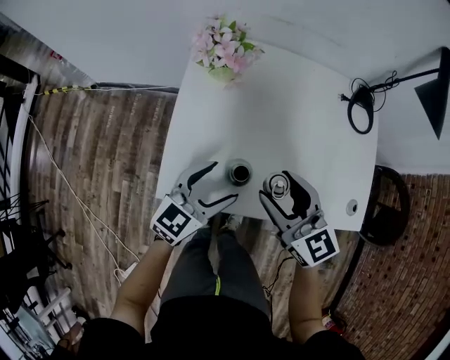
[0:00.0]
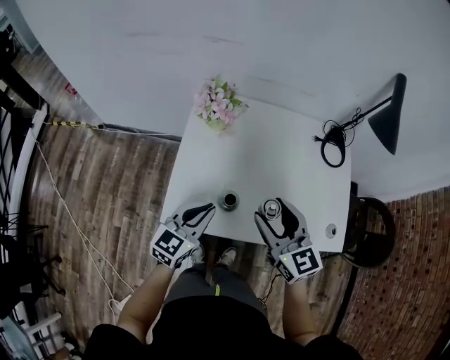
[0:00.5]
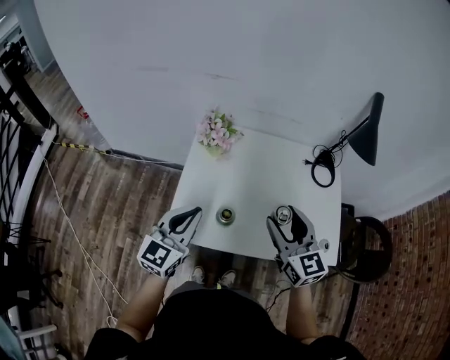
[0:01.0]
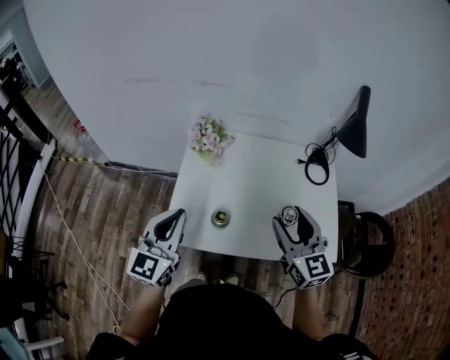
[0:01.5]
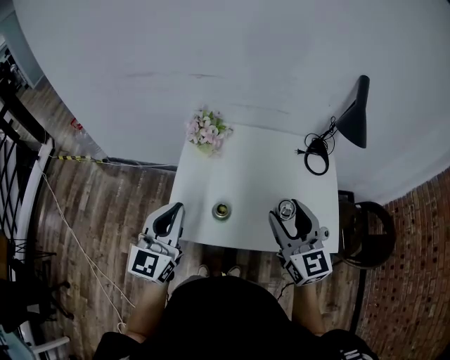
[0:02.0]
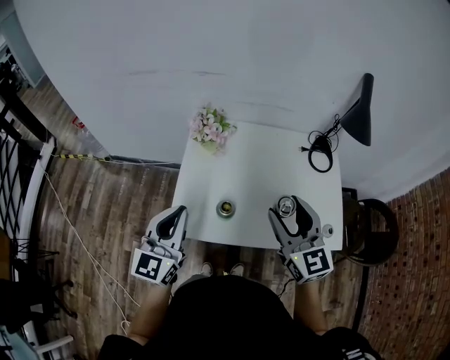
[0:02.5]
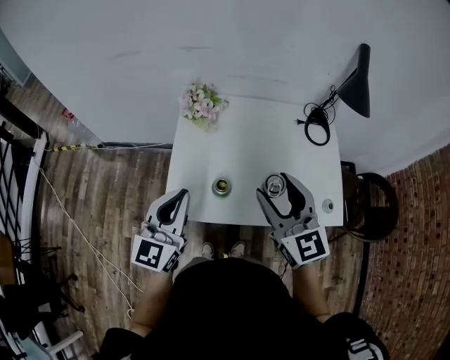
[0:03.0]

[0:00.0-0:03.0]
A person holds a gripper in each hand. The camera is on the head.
0:00.0 to 0:01.5: The left gripper goes roughly 20 cm upward, rotates approximately 30 degrees, and closes, while the right gripper is displaced upward and to the right by approximately 20 cm.
0:01.5 to 0:03.0: The right gripper heads to the left, covering roughly 5 cm.

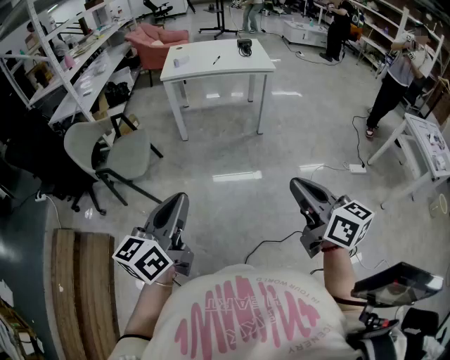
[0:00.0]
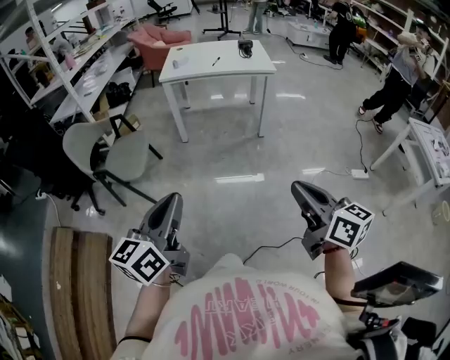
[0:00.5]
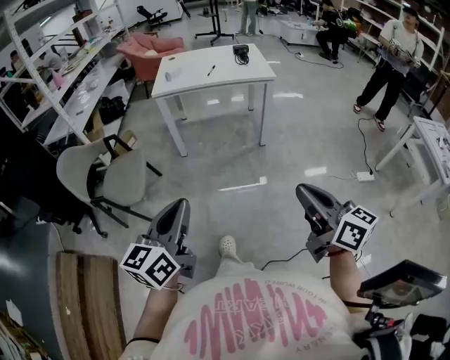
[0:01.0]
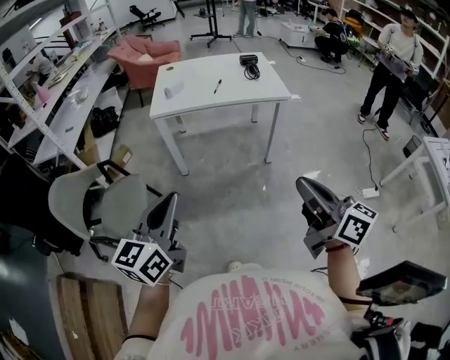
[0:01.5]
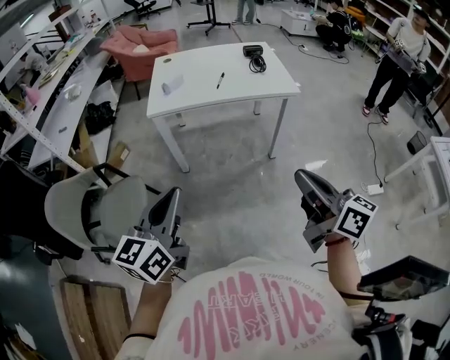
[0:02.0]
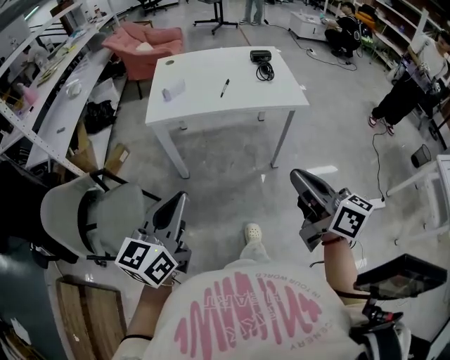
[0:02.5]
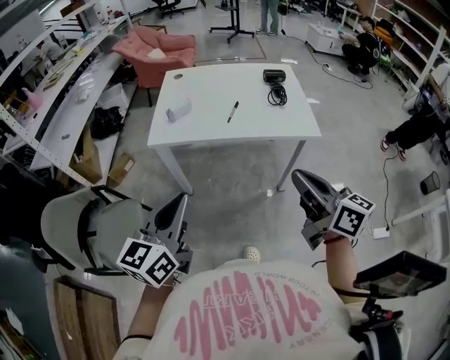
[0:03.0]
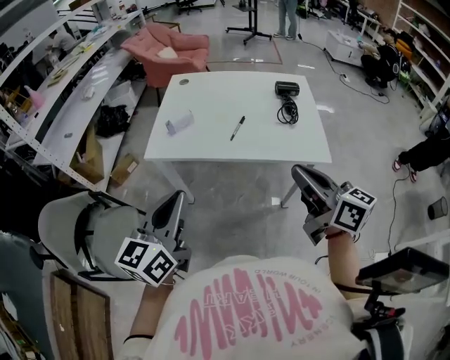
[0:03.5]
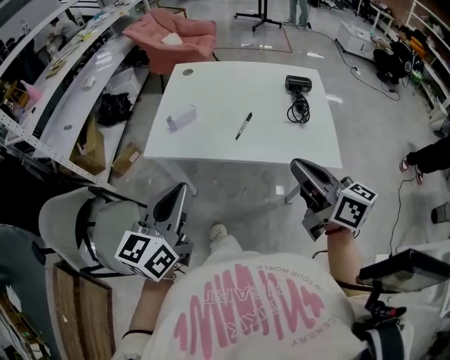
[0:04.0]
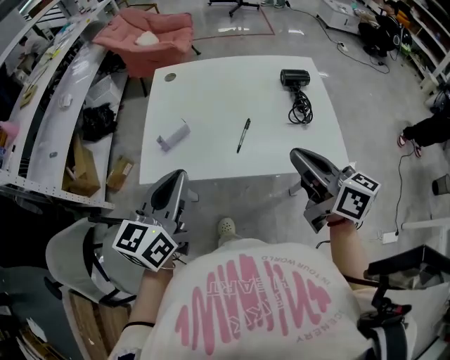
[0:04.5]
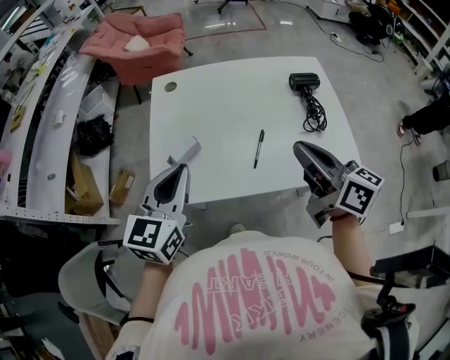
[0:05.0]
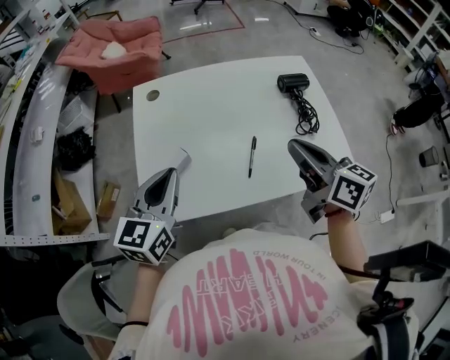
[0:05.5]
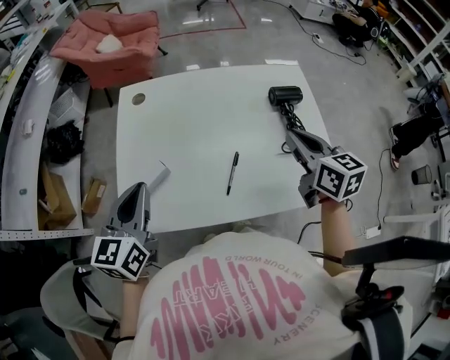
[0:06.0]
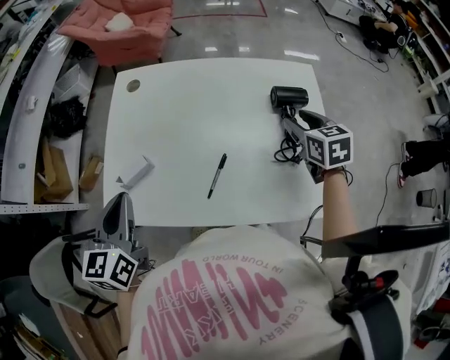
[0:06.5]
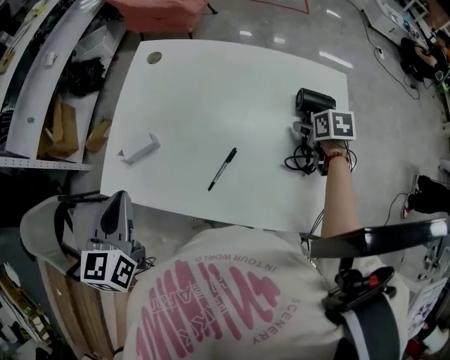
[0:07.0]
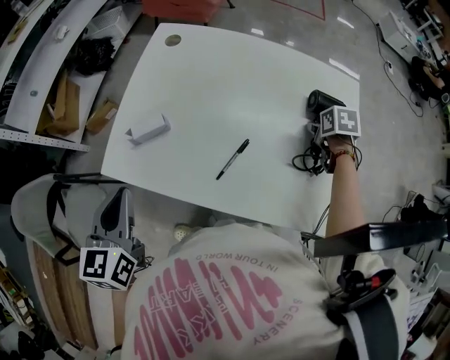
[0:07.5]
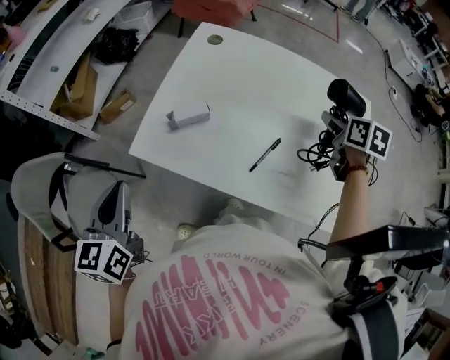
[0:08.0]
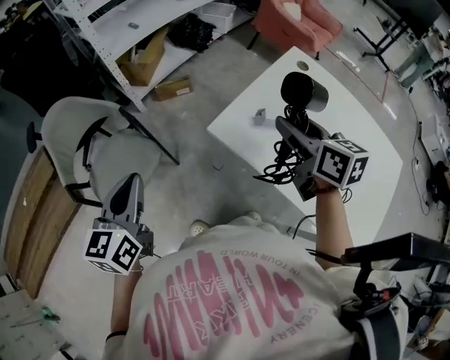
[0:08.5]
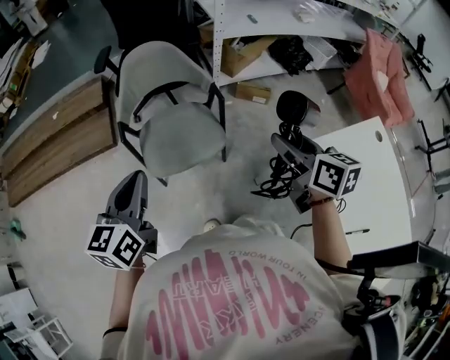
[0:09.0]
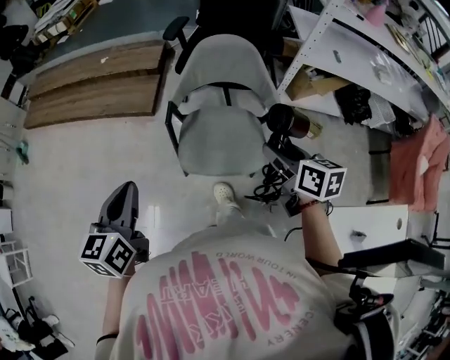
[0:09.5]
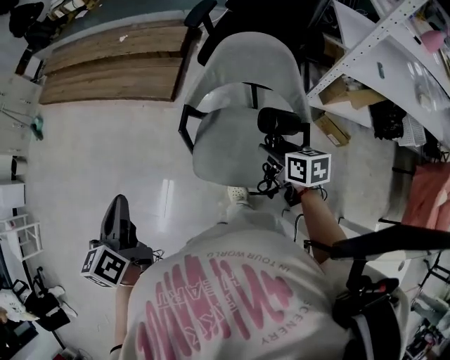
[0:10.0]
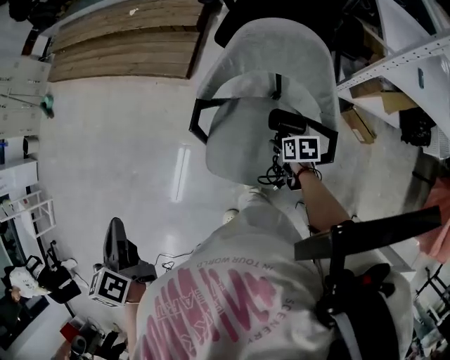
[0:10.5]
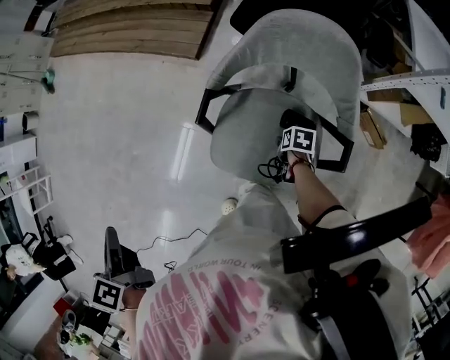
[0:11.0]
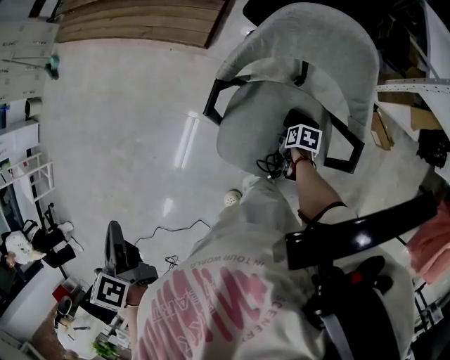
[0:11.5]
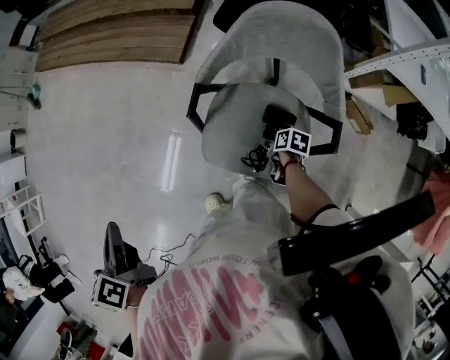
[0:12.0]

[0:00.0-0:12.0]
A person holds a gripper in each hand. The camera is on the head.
0:00.0 to 0:02.0: The grippers both shift forward by approximately 40 cm.
0:02.0 to 0:04.0: Both grippers travel together forward, roughly 35 cm.
0:04.0 to 0:06.0: The two grippers go approximately 25 cm forward. The right gripper changes its angle by about 30 degrees.
0:06.0 to 0:08.0: The left gripper travels backward and to the left by approximately 15 cm, and swivels some 40 degrees. The right gripper is displaced forward and to the right by about 15 cm, reaches approximately 20 cm downward, then returns, swivels about 20 degrees, and opens.
0:08.0 to 0:10.0: Both grippers are carried some 70 cm. The left gripper swivels approximately 100 degrees; the right gripper changes its angle by some 100 degrees.
0:10.0 to 0:12.0: The right gripper moves downward, some 25 cm, and rotates about 40 degrees; the left gripper moves some 10 cm, and changes its angle by roughly 20 degrees.

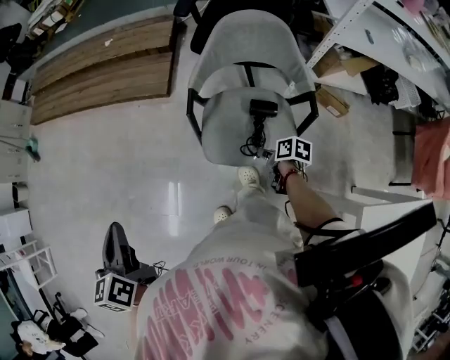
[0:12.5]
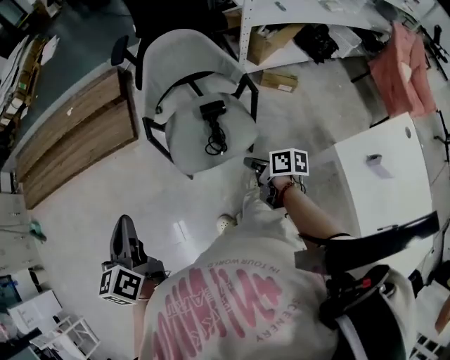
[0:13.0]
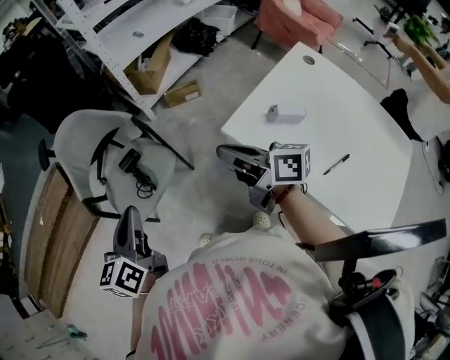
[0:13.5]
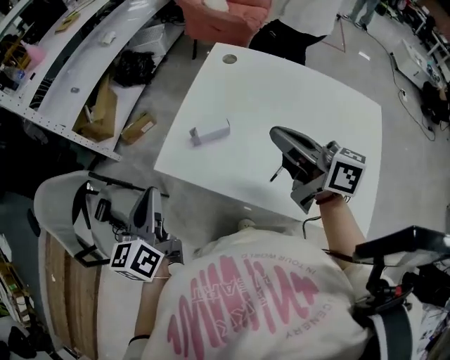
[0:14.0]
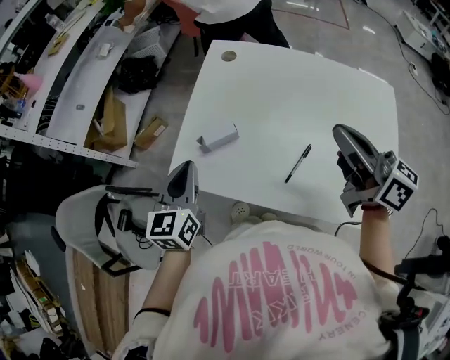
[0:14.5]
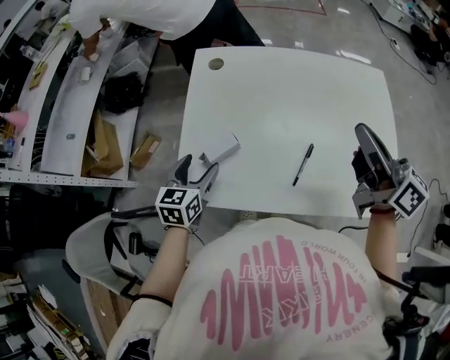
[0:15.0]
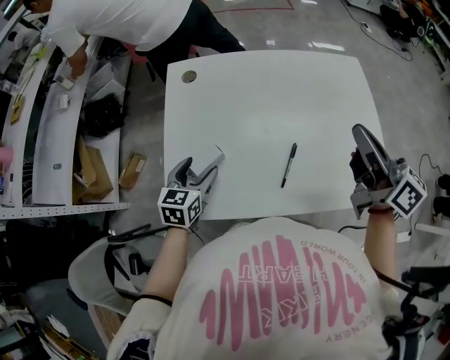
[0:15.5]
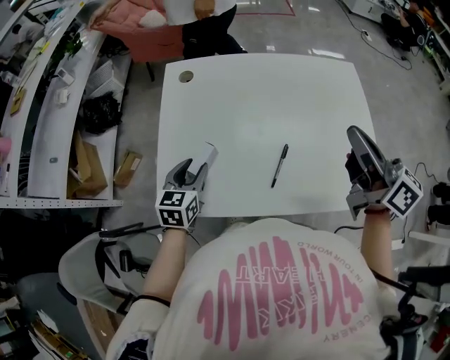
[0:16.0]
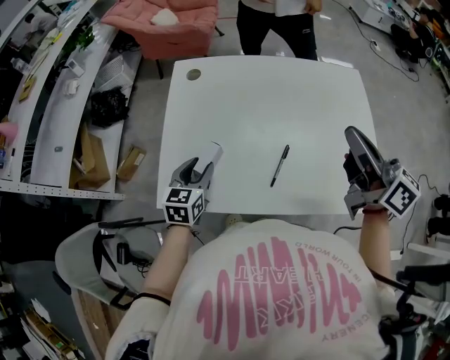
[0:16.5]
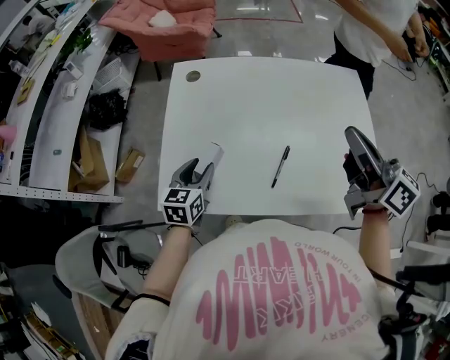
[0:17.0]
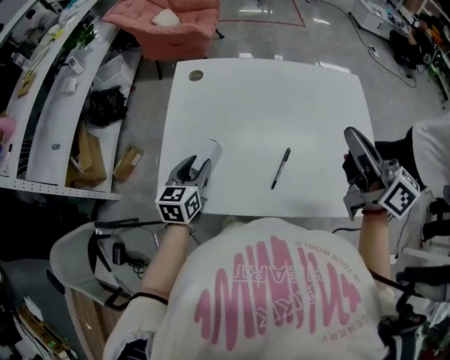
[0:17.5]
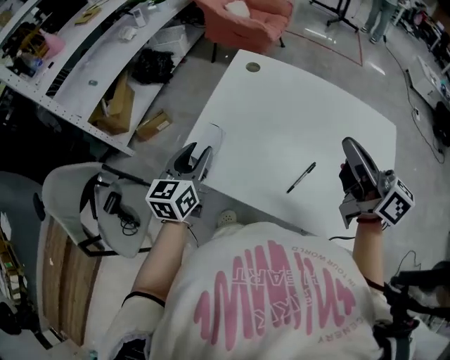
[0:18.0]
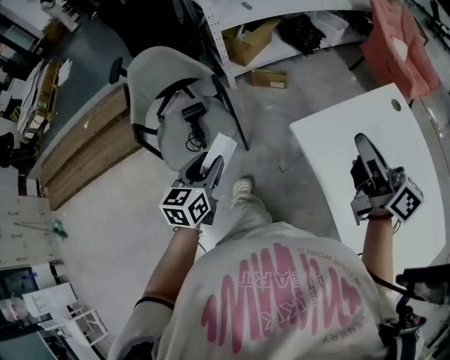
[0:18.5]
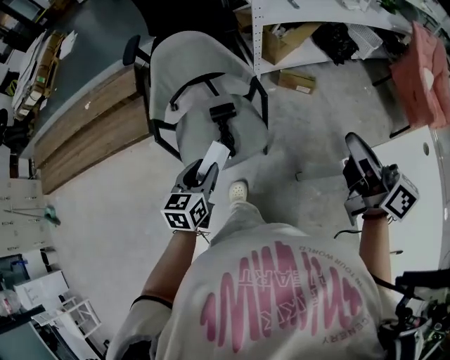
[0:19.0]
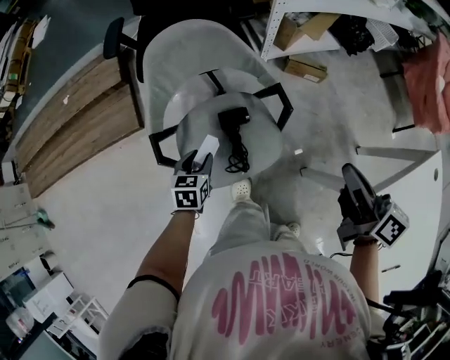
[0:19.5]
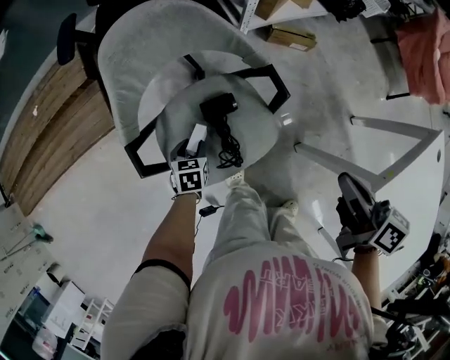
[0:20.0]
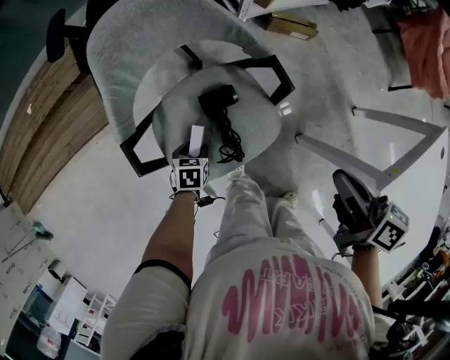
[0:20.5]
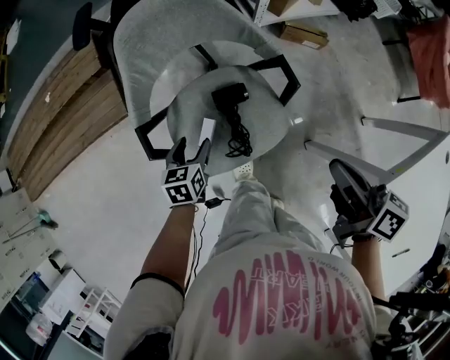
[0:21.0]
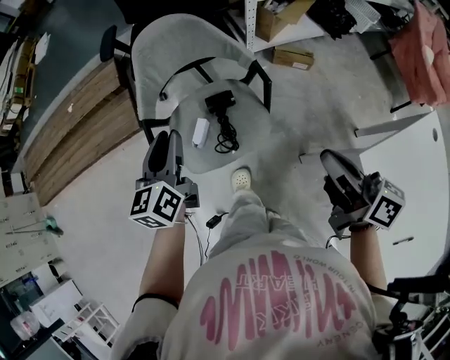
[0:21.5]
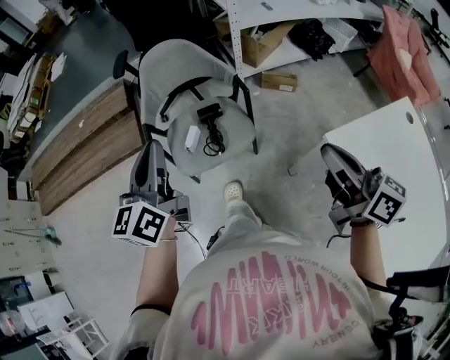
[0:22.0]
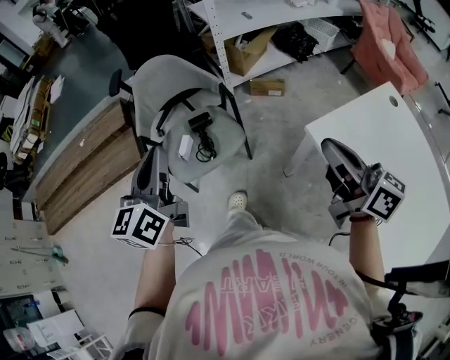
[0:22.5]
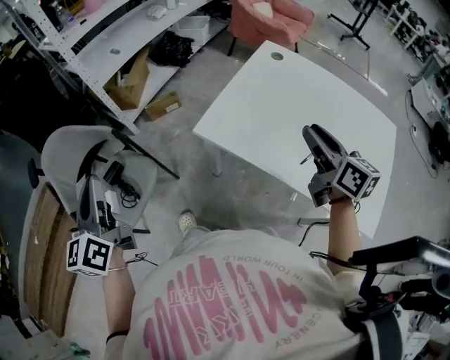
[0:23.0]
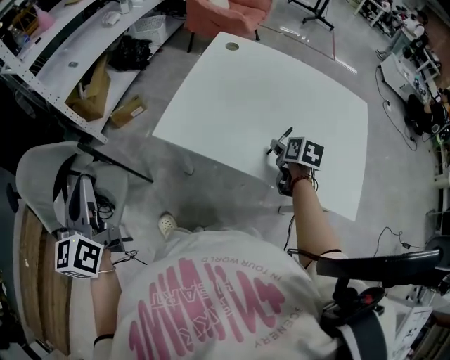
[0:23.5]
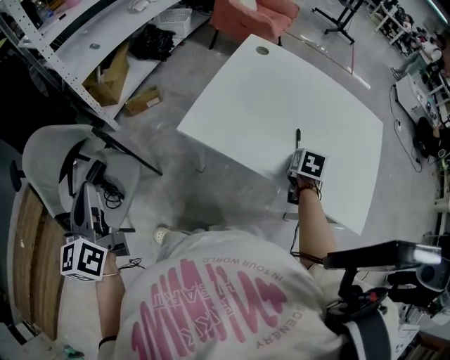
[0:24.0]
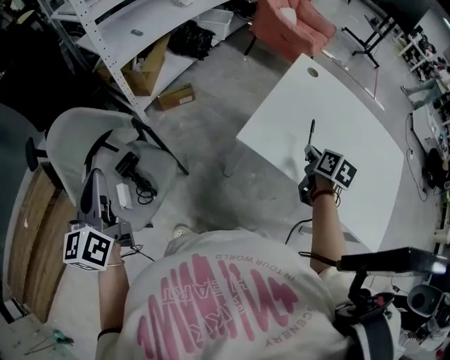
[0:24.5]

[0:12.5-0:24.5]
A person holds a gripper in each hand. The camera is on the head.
0:12.5 to 0:14.5: The right gripper shifts by about 80 cm, tips its fingers upward by roughly 60 degrees, and closes. The left gripper changes place by approximately 70 cm, and swivels some 110 degrees.
0:14.5 to 0:16.5: The right gripper ends up roughly 10 cm from where it was, and rotates roughly 20 degrees; the left gripper moves downward, roughly 10 cm, swivels roughly 30 degrees, and opens its fingers.
0:16.5 to 0:18.5: The left gripper ends up approximately 40 cm from where it was, and rotates roughly 70 degrees. Meanwhile the right gripper ends up about 35 cm from where it was, and changes its angle by some 60 degrees.
0:18.5 to 0:20.5: The right gripper shifts approximately 35 cm to the left, forward and downward, and tilts its fingers some 30 degrees downward. The left gripper moves downward, to the left and forward, approximately 40 cm, and tilts its fingers some 40 degrees downward.
0:20.5 to 0:22.5: The right gripper is displaced backward and upward by some 25 cm, and angles its fingers upward, by some 30 degrees; the left gripper heads upward, covering about 50 cm, tips its fingers upward by about 70 degrees, and closes up.
0:22.5 to 0:24.5: The right gripper angles its fingers downward, by some 50 degrees, and opens and closes again.
